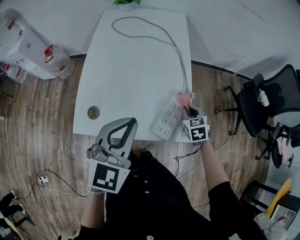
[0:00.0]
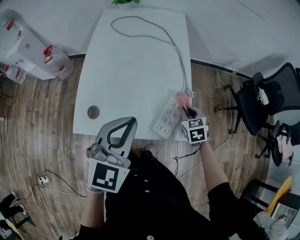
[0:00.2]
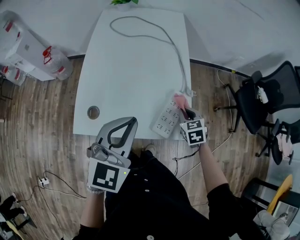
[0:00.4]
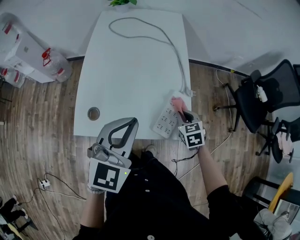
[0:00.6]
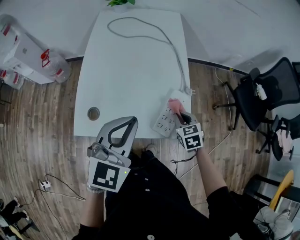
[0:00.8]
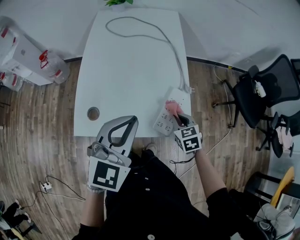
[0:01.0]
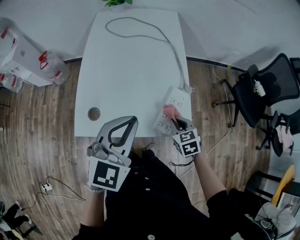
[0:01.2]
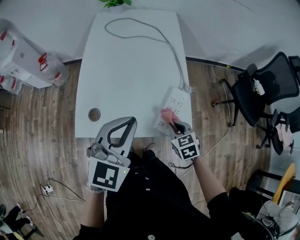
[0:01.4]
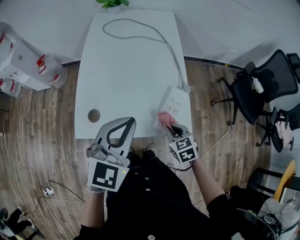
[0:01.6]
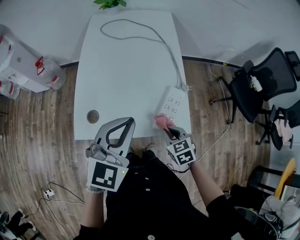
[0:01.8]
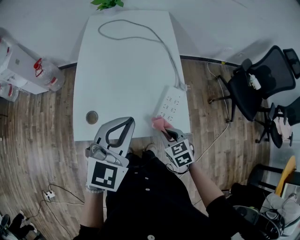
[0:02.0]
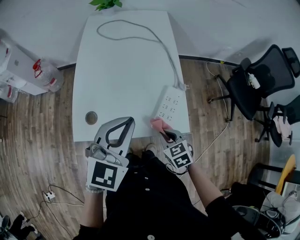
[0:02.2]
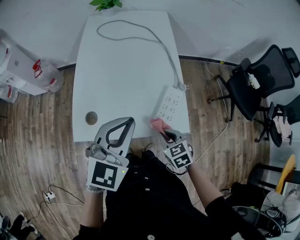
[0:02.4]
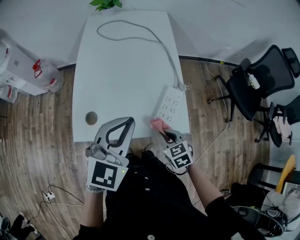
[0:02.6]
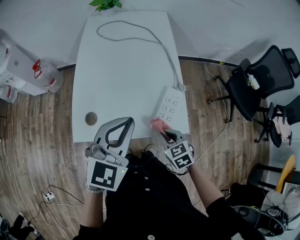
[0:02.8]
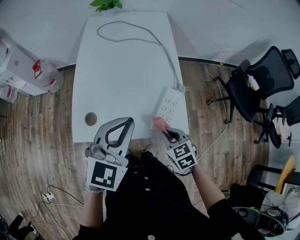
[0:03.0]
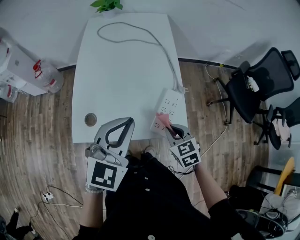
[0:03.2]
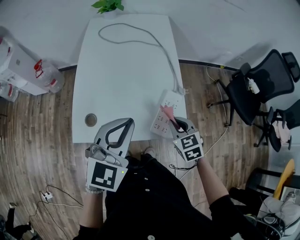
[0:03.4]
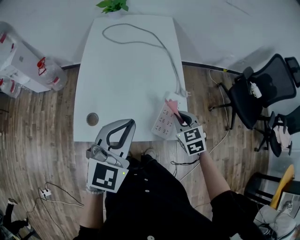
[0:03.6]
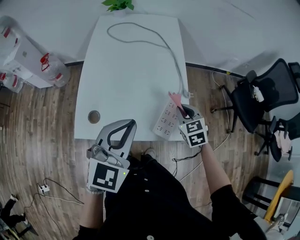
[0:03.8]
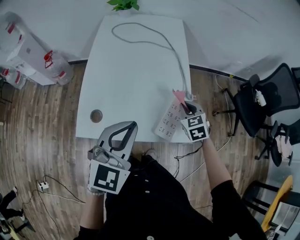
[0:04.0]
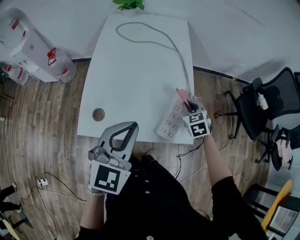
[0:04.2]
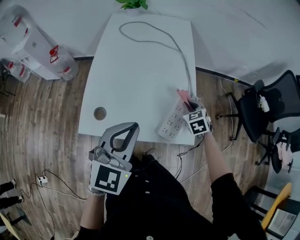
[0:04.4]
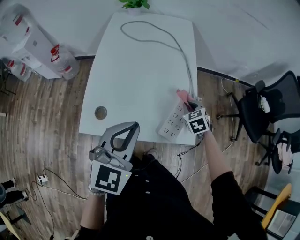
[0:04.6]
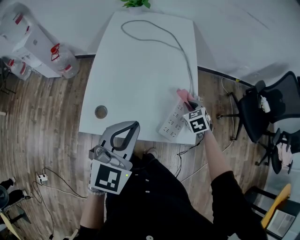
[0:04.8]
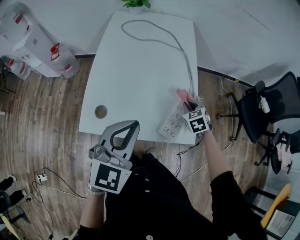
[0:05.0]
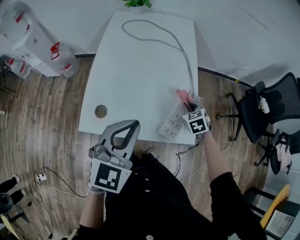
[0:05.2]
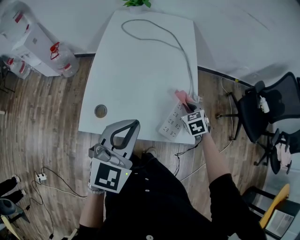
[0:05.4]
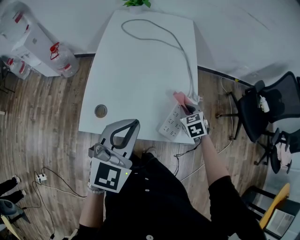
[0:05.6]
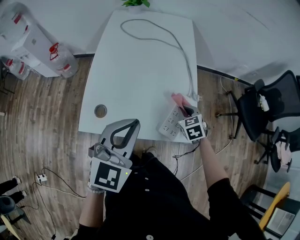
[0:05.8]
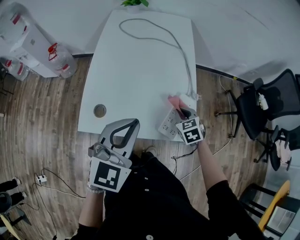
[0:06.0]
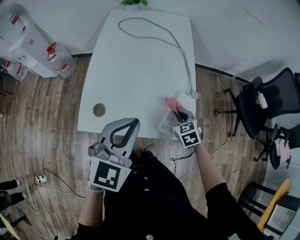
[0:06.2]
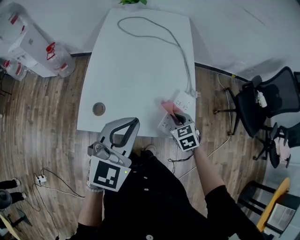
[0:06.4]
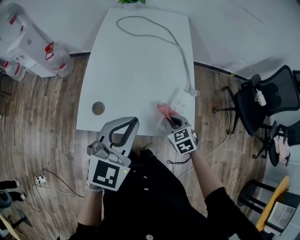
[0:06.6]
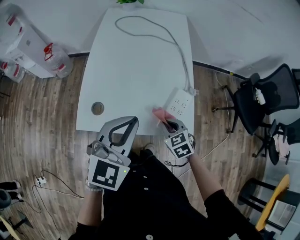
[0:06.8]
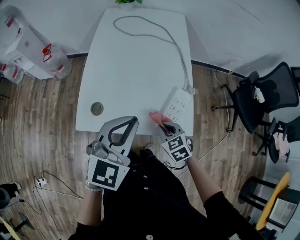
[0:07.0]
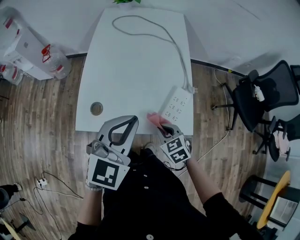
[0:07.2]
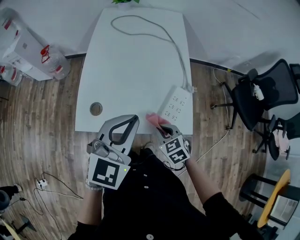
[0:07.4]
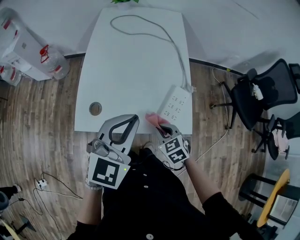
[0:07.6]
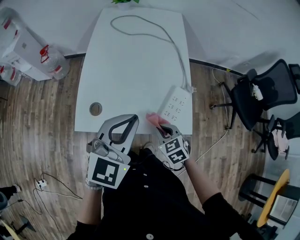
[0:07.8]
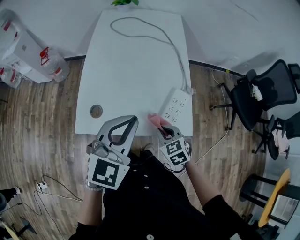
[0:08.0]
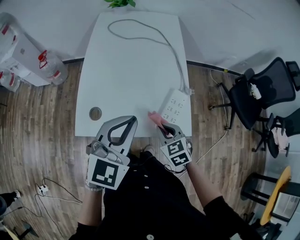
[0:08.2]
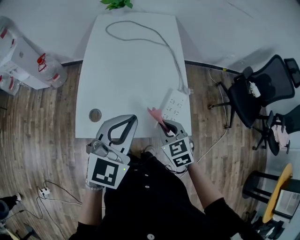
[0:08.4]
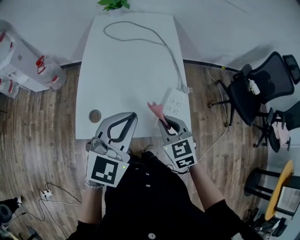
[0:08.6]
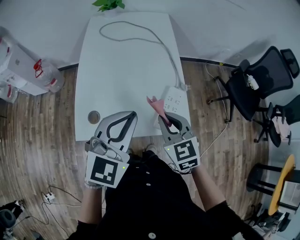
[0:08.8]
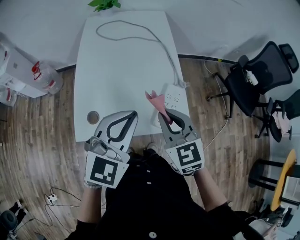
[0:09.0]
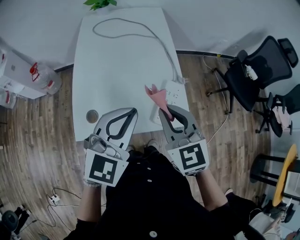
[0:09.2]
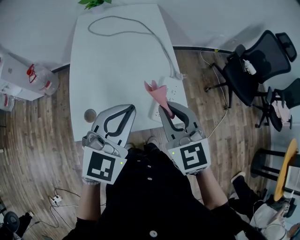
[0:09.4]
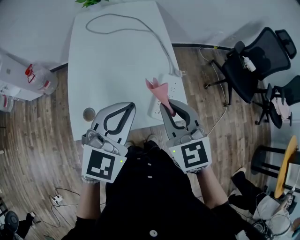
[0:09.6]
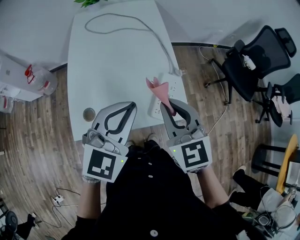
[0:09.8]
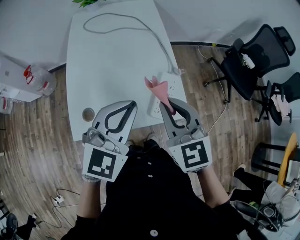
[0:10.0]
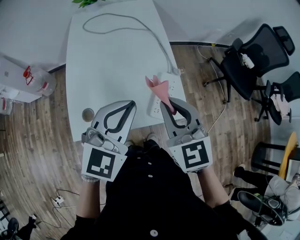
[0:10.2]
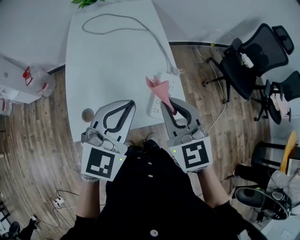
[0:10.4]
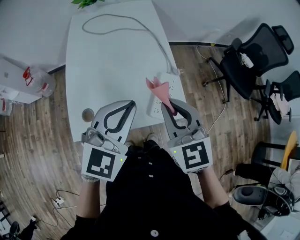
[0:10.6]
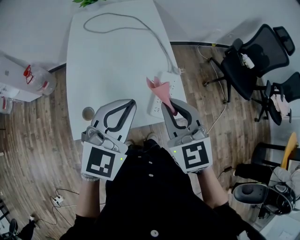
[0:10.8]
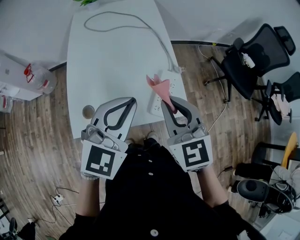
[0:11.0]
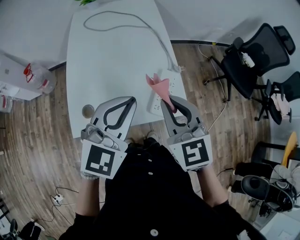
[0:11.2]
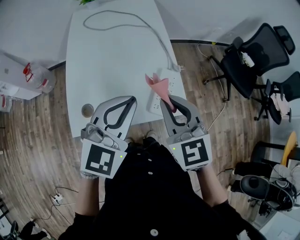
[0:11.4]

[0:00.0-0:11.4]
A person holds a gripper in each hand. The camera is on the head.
0.0 to 1.4 s: The right gripper moves backward and to the left, some 15 cm.
1.4 to 2.8 s: The right gripper changes place by about 5 cm.
2.8 to 4.2 s: The right gripper heads forward, covering about 20 cm.
4.2 to 5.6 s: The grippers move only a little.
5.6 to 7.2 s: The right gripper heads backward and to the left, covering about 15 cm.
7.2 to 8.6 s: The right gripper travels upward by roughly 10 cm.
8.6 to 10.0 s: The right gripper goes some 10 cm upward.
10.0 to 11.4 s: Both grippers stay put.

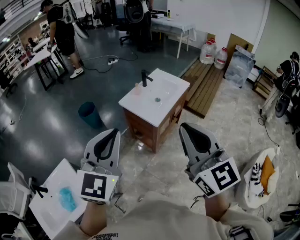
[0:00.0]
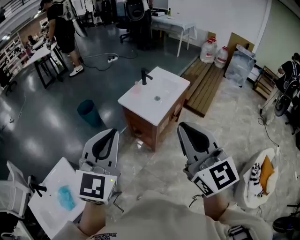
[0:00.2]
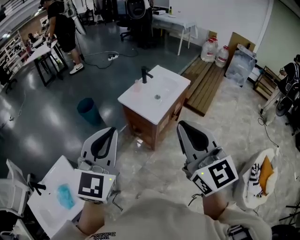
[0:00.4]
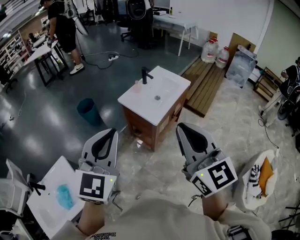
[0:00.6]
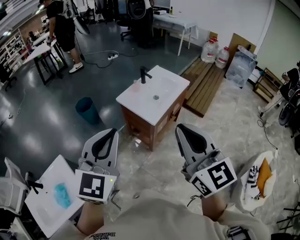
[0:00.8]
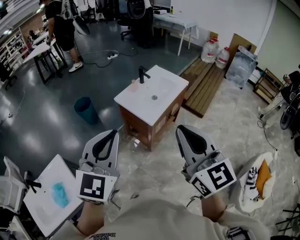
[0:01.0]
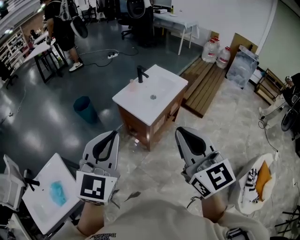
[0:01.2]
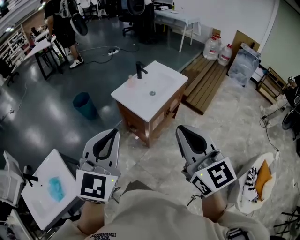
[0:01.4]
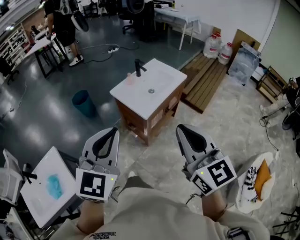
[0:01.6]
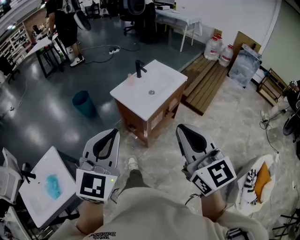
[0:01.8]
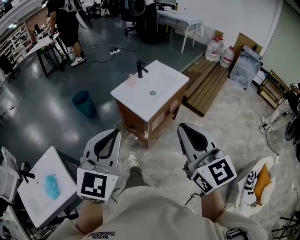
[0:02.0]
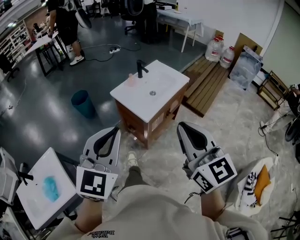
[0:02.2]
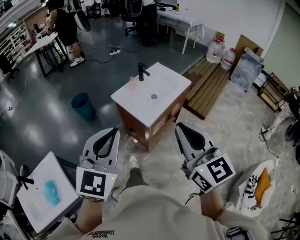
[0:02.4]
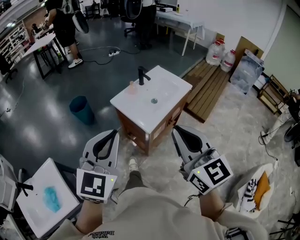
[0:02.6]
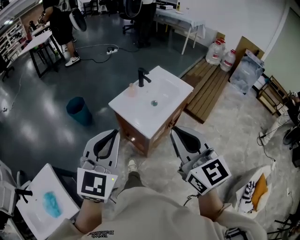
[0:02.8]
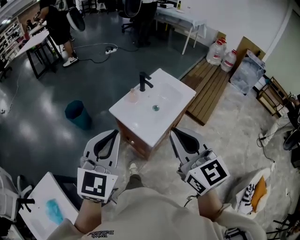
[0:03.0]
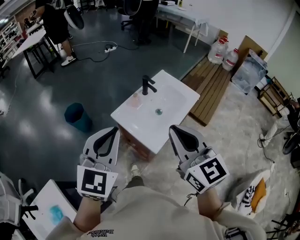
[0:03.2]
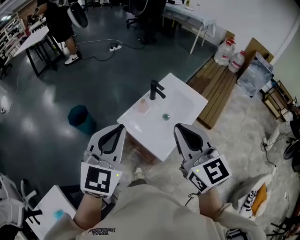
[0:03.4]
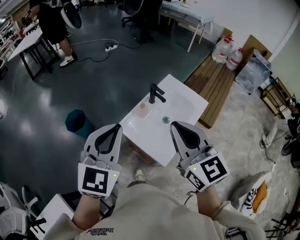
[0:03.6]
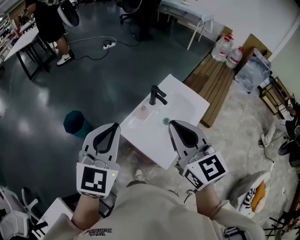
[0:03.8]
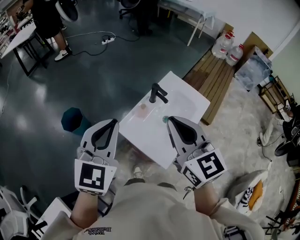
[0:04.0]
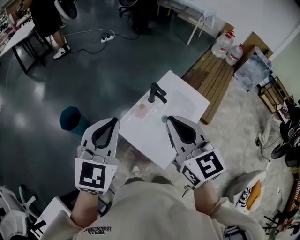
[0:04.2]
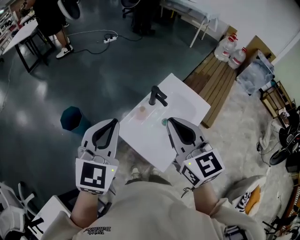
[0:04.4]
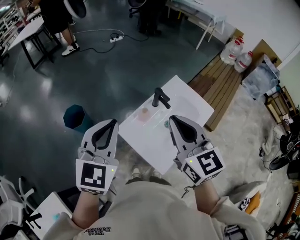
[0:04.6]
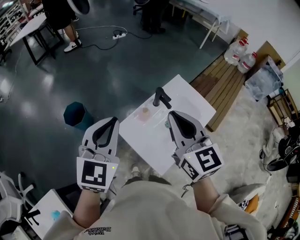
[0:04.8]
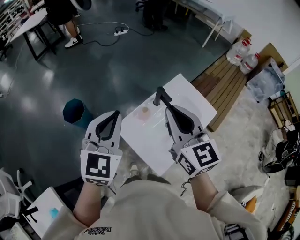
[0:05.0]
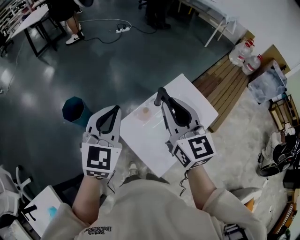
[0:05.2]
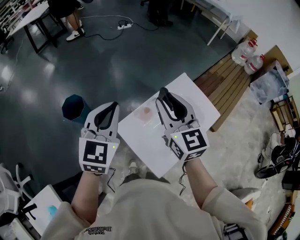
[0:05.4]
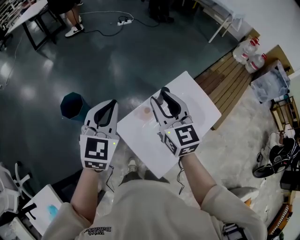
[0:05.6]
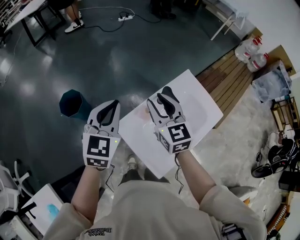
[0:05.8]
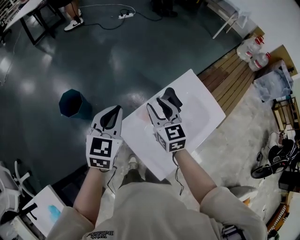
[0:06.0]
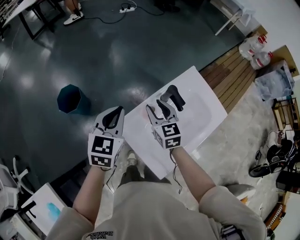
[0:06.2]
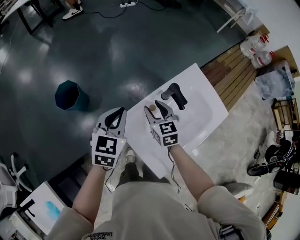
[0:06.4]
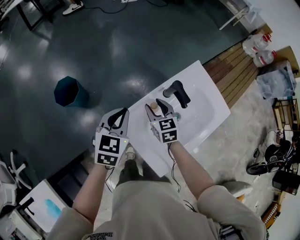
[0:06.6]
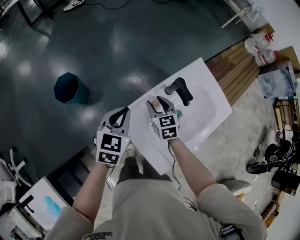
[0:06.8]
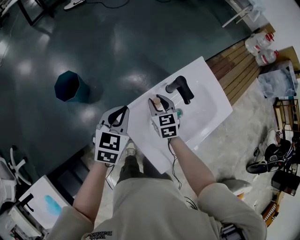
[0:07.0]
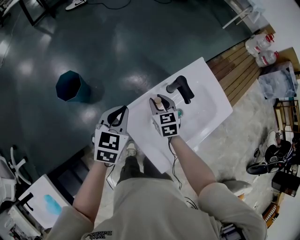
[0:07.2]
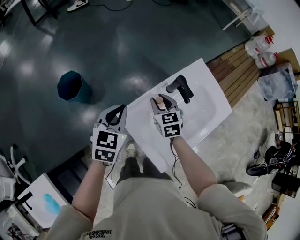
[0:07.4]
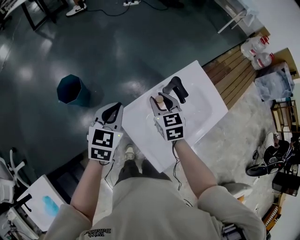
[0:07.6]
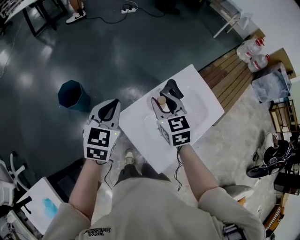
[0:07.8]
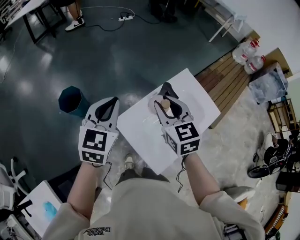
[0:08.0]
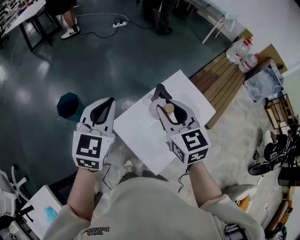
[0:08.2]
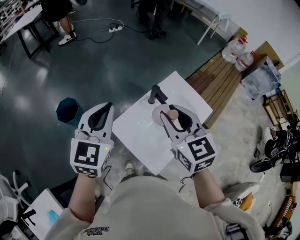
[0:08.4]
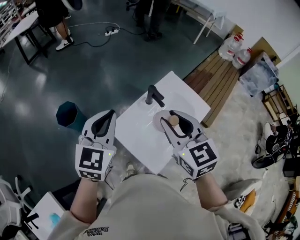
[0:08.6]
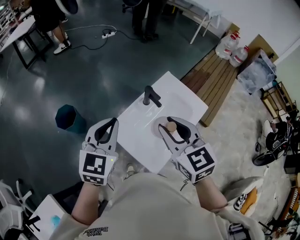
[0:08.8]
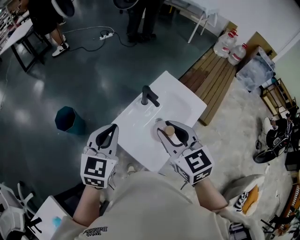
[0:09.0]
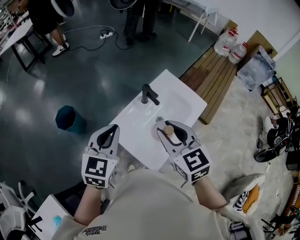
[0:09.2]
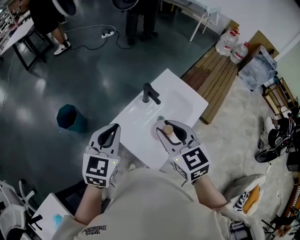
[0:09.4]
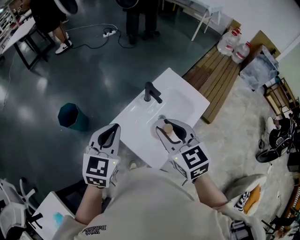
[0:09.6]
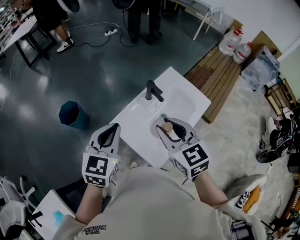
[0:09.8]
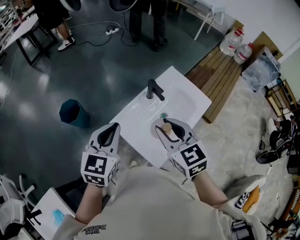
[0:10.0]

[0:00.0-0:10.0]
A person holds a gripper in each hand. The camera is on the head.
0.0 to 1.4 s: The left gripper moves to the right, roughly 10 cm. The right gripper goes some 10 cm to the right and downward.
1.4 to 2.8 s: The grippers both shift forward by about 15 cm.
2.8 to 4.2 s: Both grippers move forward, approximately 35 cm.
4.2 to 5.8 s: Both grippers travel together forward and downward, approximately 20 cm. The right gripper opens up.
5.8 to 7.2 s: The right gripper is displaced downward by approximately 25 cm, and rotates some 20 degrees. The left gripper shifts roughly 15 cm downward.
7.2 to 8.6 s: The left gripper moves upward, some 20 cm, and swivels some 20 degrees; the right gripper travels upward and backward by some 35 cm.
8.6 to 10.0 s: The right gripper shifts by roughly 5 cm, while the left gripper moves backward, roughly 5 cm.

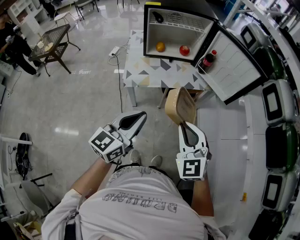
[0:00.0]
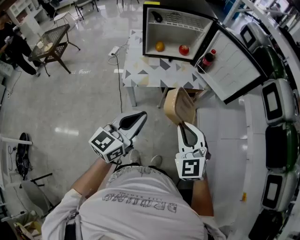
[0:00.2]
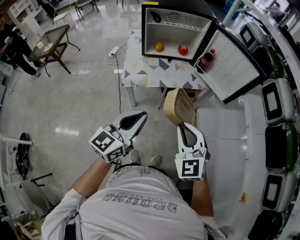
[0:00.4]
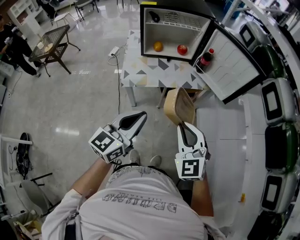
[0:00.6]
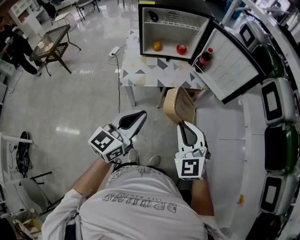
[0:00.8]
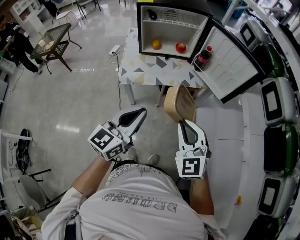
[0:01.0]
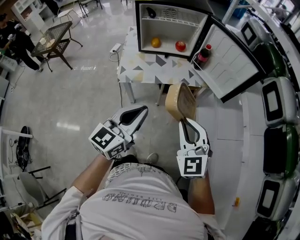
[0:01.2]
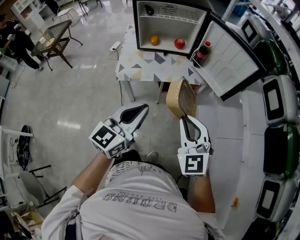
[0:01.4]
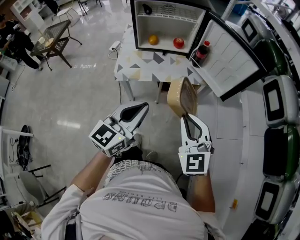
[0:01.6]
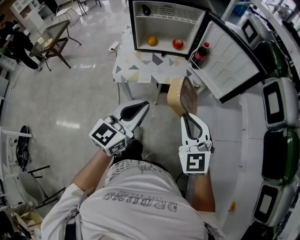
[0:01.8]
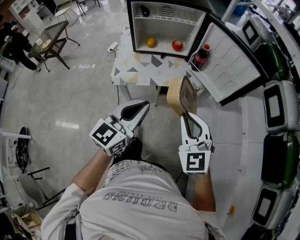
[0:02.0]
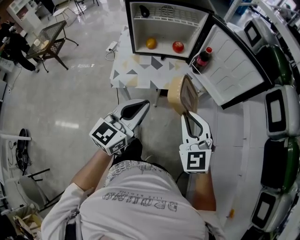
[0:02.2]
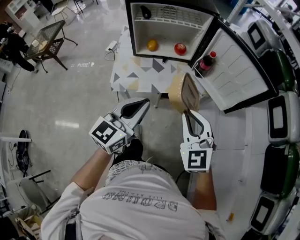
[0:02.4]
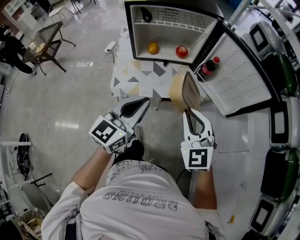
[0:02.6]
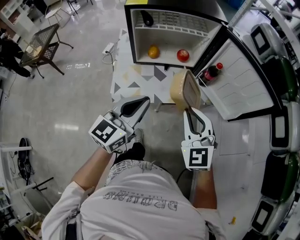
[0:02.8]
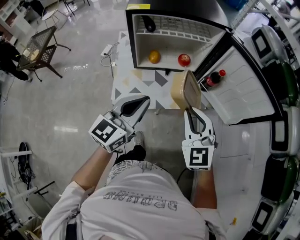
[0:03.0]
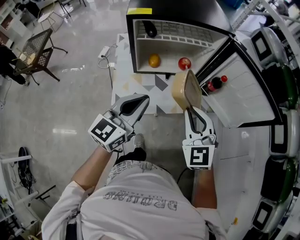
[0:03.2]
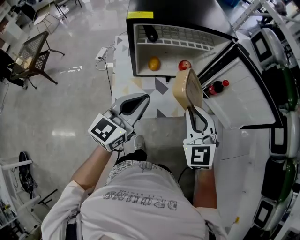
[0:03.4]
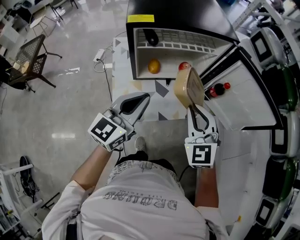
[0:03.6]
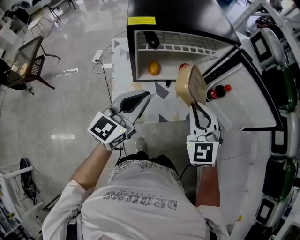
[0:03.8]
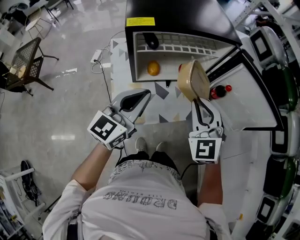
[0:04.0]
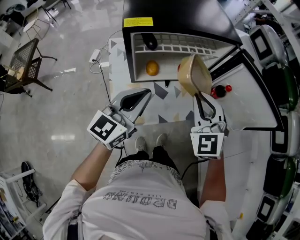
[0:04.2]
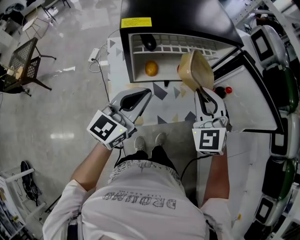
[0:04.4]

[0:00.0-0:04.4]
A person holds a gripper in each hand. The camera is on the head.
0.0 to 1.4 s: The two grippers go some 10 cm to the right.
1.4 to 3.0 s: The right gripper moves forward, approximately 25 cm. Meanwhile the left gripper goes approximately 25 cm forward and to the left.
3.0 to 4.4 s: The left gripper moves forward and to the left, some 15 cm, while the right gripper shifts about 15 cm forward.
